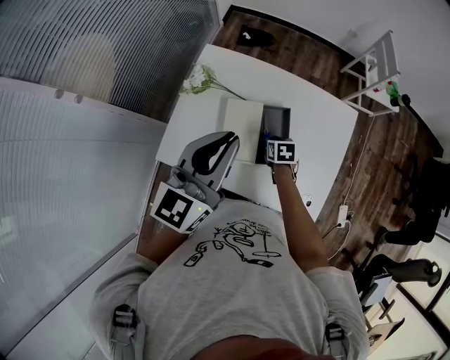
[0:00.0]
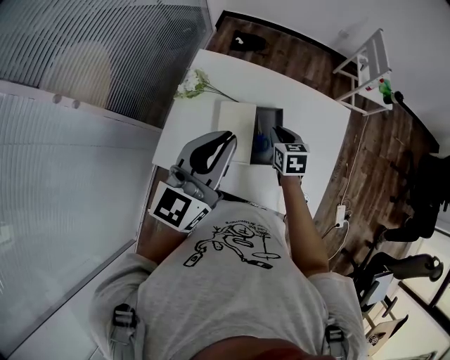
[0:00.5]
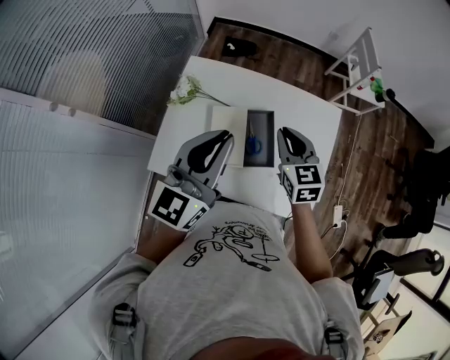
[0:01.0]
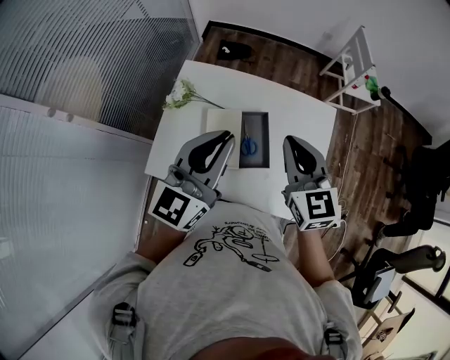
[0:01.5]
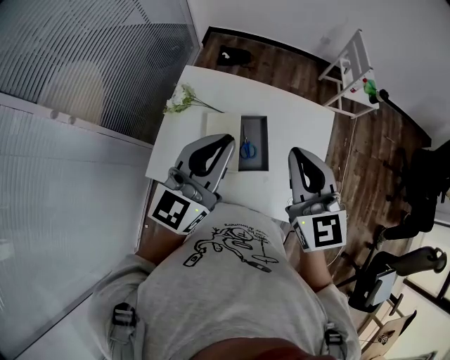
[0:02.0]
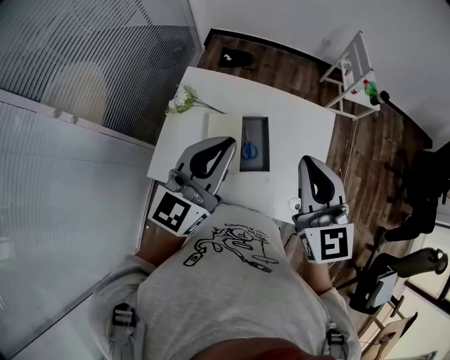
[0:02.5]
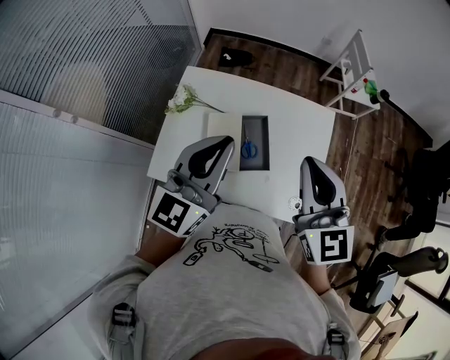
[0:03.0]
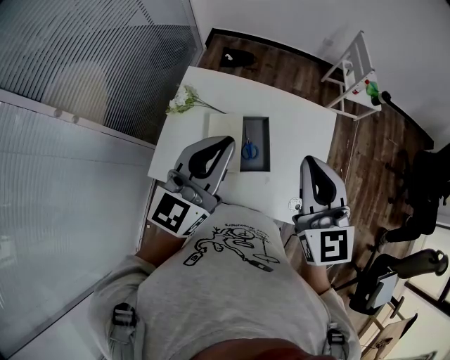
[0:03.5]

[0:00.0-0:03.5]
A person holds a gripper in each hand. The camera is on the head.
0:00.0 to 0:02.0: The left gripper goes some 5 cm to the right, while the right gripper goes approximately 40 cm upward, points its fingers some 50 degrees further upward, and closes its fingers.
0:02.0 to 0:03.5: The grippers move only a little.

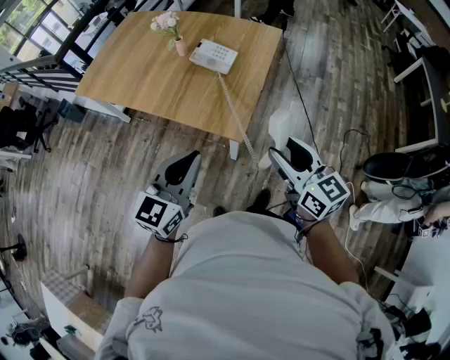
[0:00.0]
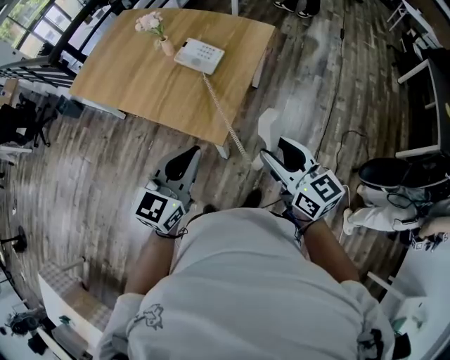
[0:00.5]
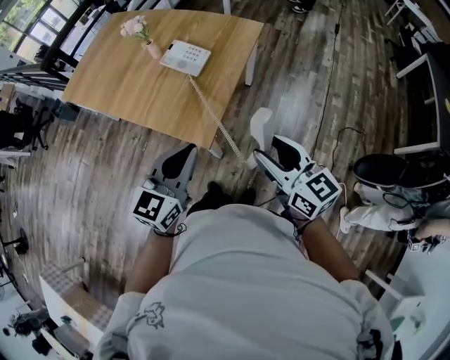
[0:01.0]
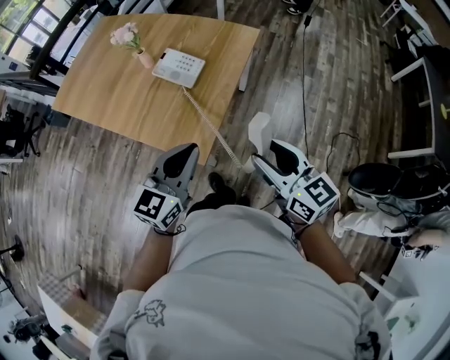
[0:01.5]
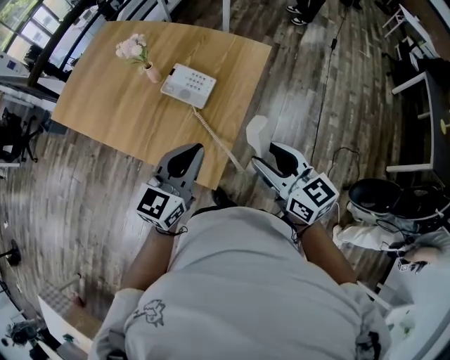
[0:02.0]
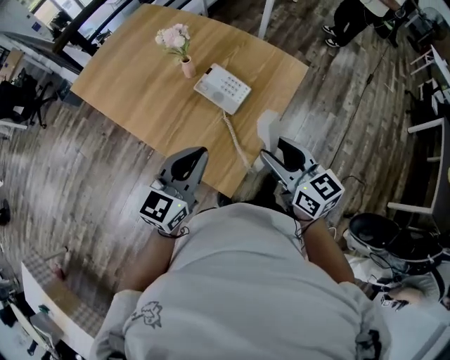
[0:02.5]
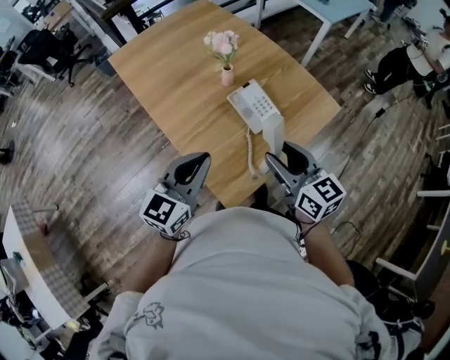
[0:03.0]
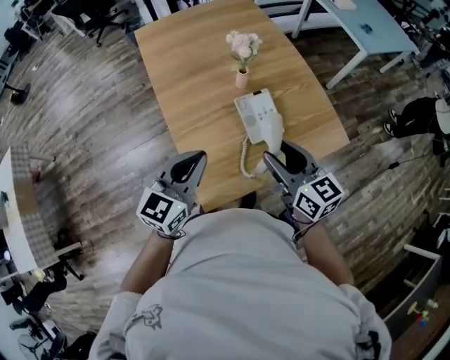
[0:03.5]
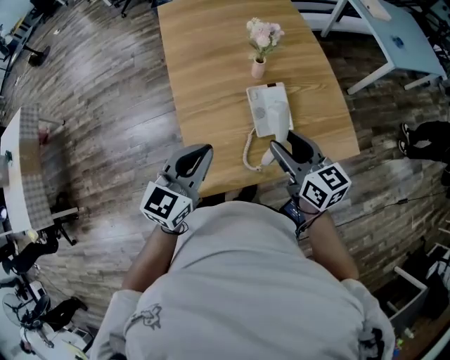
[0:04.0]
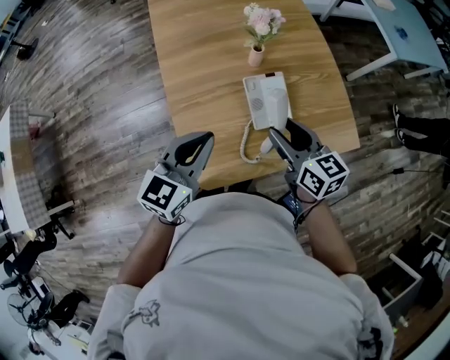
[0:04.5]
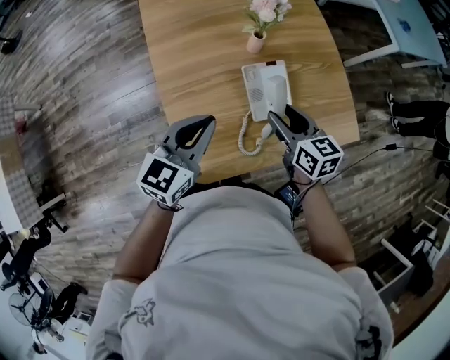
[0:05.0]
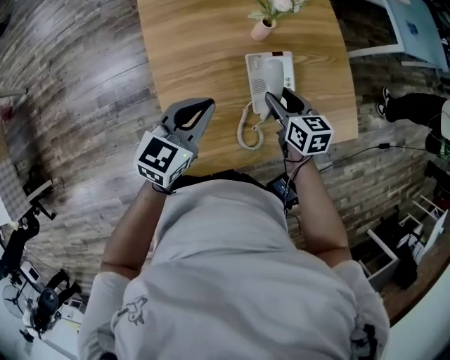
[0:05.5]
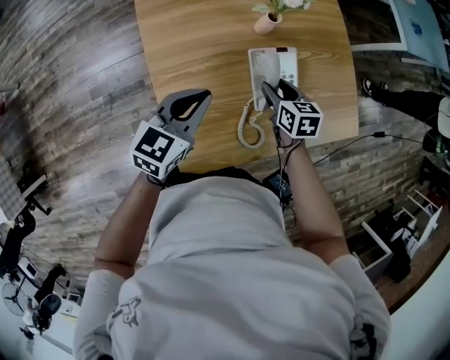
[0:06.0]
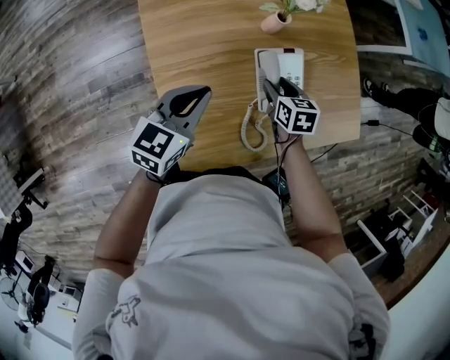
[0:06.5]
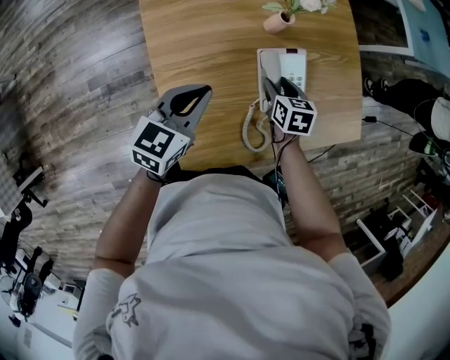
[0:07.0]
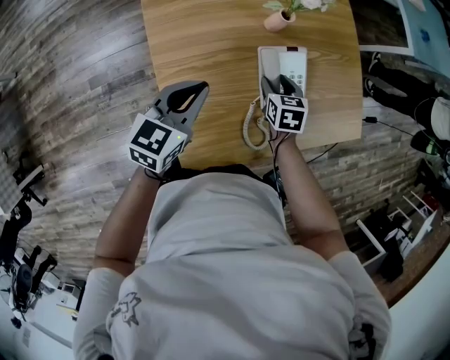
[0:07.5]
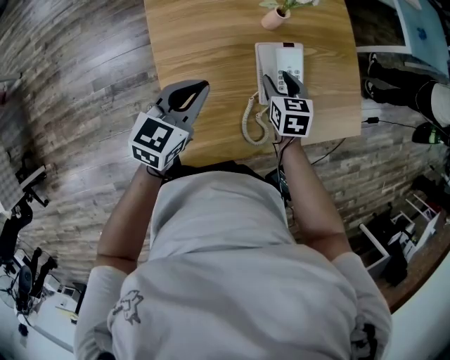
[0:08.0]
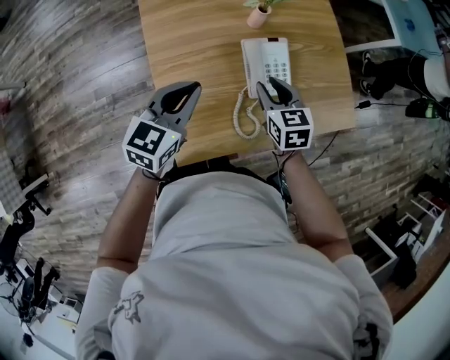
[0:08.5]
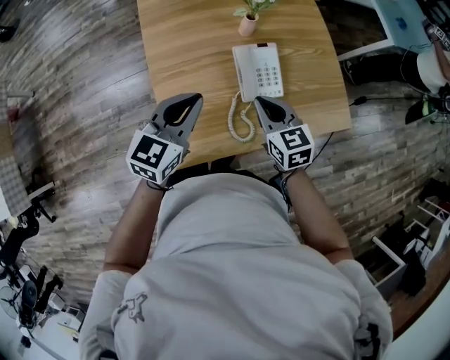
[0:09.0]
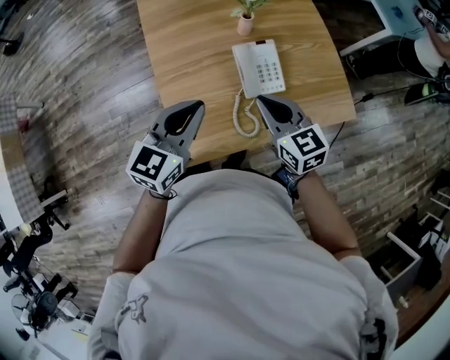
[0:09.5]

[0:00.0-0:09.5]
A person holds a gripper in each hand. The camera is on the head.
0:00.0 to 0:02.0: The left gripper travels forward and to the right by approximately 25 cm, while the right gripper moves forward, about 20 cm.
0:02.0 to 0:04.0: The right gripper moves roughly 25 cm, and swivels some 50 degrees. Meanwhile the left gripper shifts by about 10 cm, and swivels approximately 50 degrees.
0:04.0 to 0:05.5: The right gripper shifts some 20 cm downward and forward, and rotates approximately 20 degrees, while the left gripper is displaced forward and downward by approximately 15 cm.
0:05.5 to 0:07.5: The right gripper moves downward, some 10 cm, and swivels roughly 20 degrees, while the left gripper moves about 5 cm.
0:07.5 to 0:09.5: The left gripper moves upward, backward and to the right, some 20 cm, while the right gripper shifts approximately 25 cm upward and backward, tilts its fingers approximately 30 degrees upward, and closes its fingers.

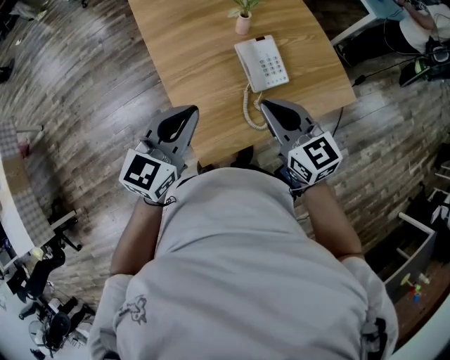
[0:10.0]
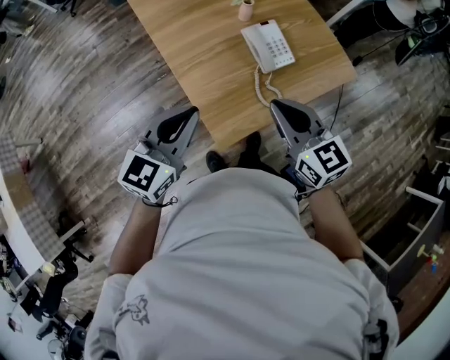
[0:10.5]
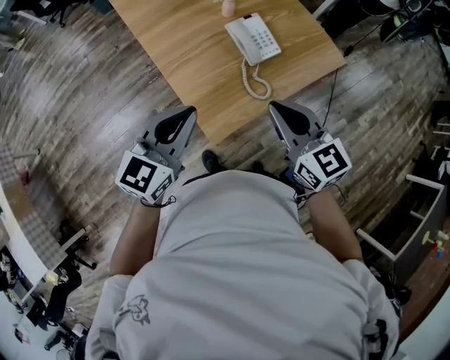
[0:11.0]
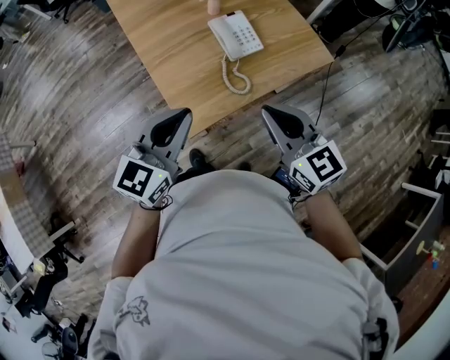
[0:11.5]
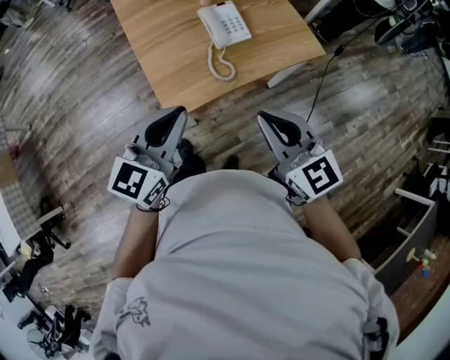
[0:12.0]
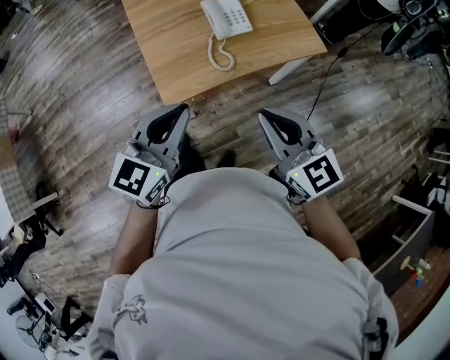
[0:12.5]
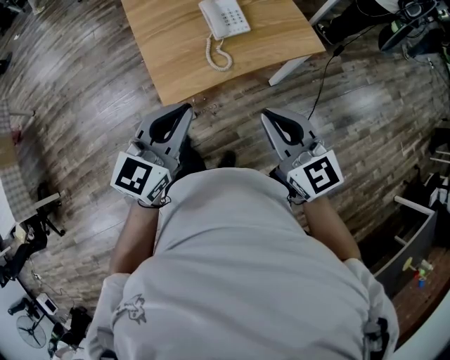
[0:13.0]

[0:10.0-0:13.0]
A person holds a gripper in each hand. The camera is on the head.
0:10.0 to 0:11.5: Both grippers move backward, approximately 15 cm.
0:11.5 to 0:13.0: Both grippers travel together backward and to the right, some 15 cm.

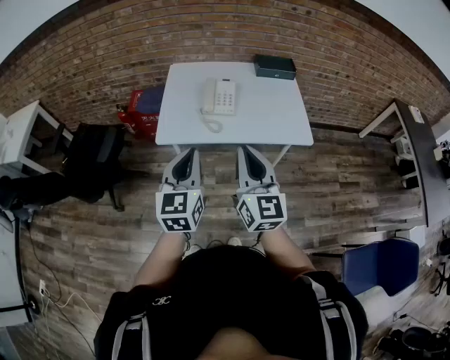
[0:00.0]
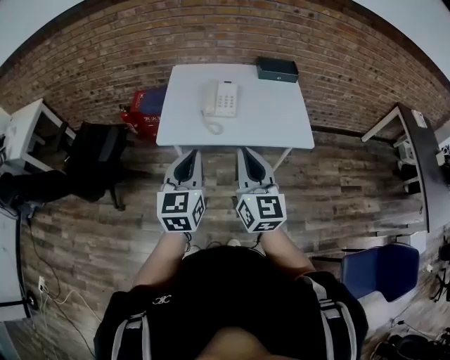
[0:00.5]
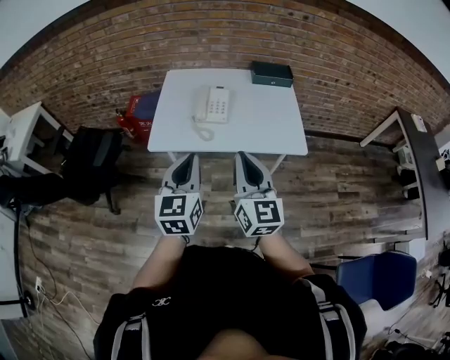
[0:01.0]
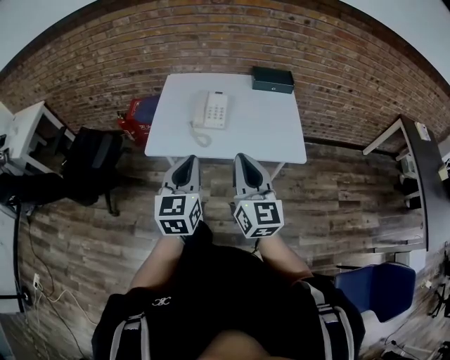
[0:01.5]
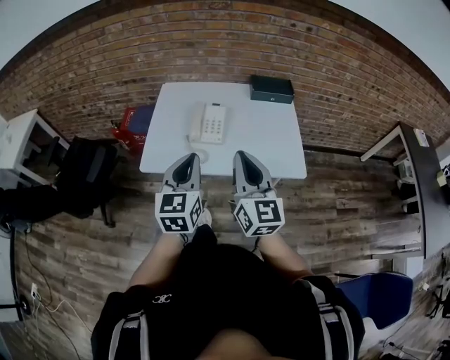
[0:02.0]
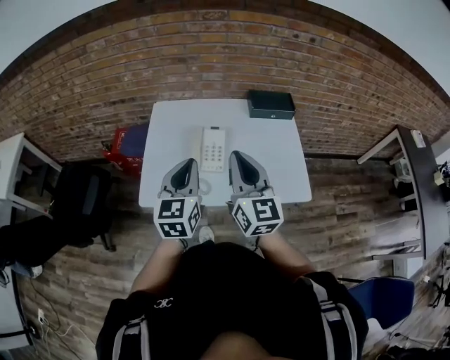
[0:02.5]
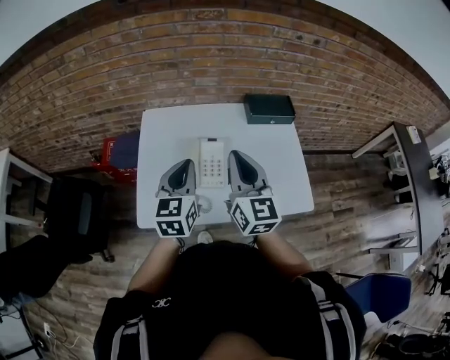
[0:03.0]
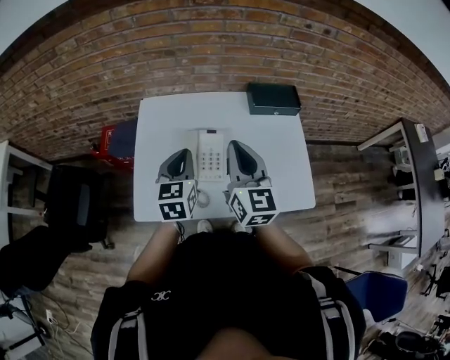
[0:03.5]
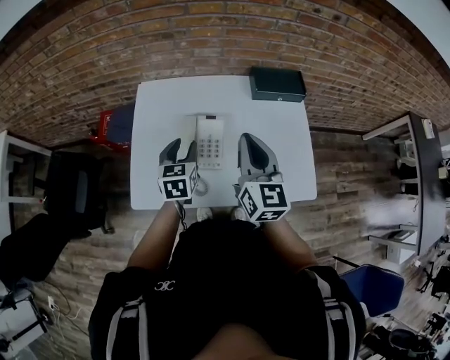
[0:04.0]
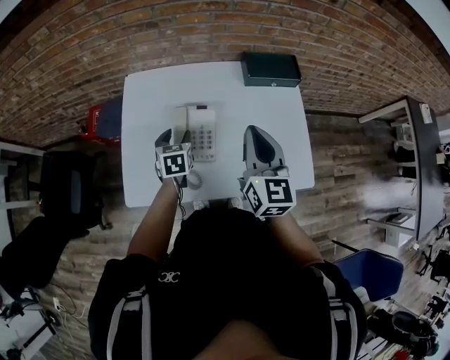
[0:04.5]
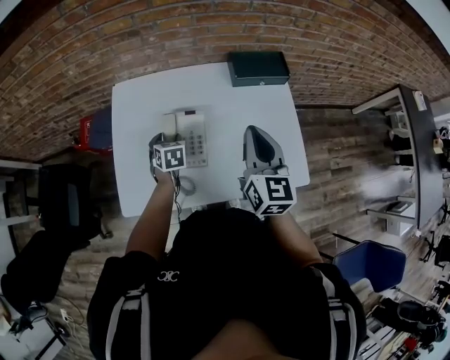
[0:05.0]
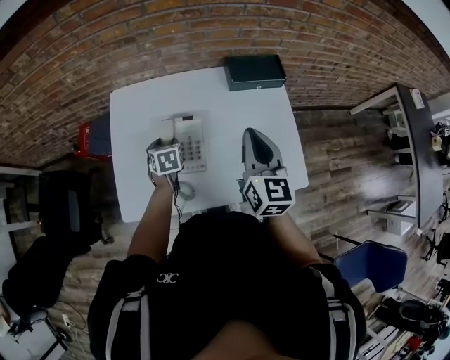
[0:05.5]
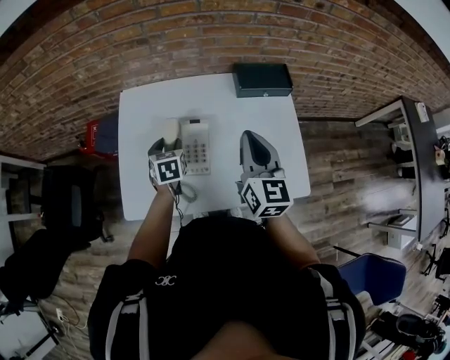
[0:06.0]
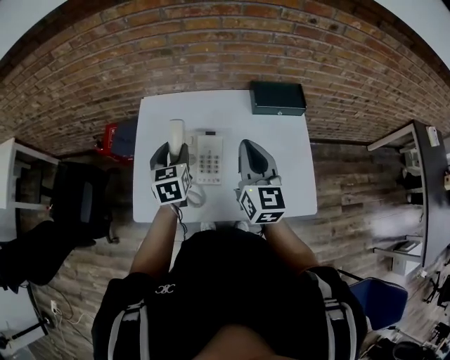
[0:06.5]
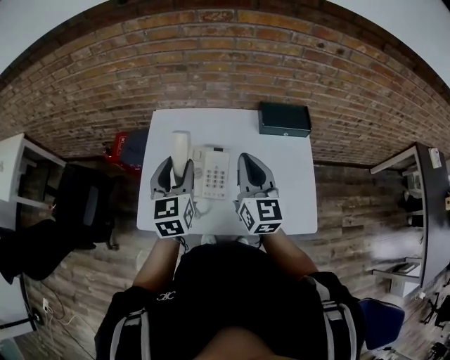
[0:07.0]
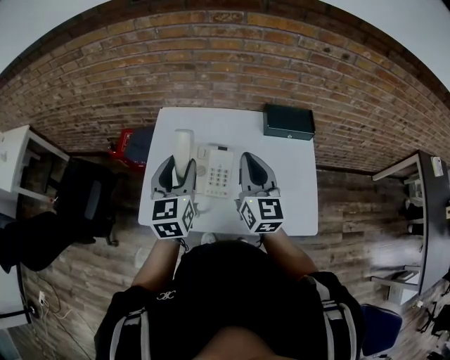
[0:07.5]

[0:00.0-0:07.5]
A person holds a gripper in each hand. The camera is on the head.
0:00.0 to 0:02.0: Both grippers move forward and to the right, roughly 15 cm.
0:02.0 to 0:04.0: The left gripper shifts approximately 35 cm forward and downward, swivels about 20 degrees, and opens; the right gripper shifts approximately 30 cm forward.
0:04.0 to 0:05.5: The left gripper travels downward and forward by some 15 cm, and rotates approximately 20 degrees. Meanwhile the right gripper moves to the right, some 5 cm.
0:05.5 to 0:07.5: The right gripper shifts about 10 cm to the left, while the left gripper shifts approximately 25 cm upward, and tilts its fingers approximately 40 degrees upward.

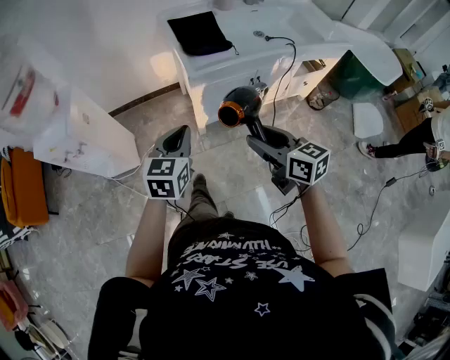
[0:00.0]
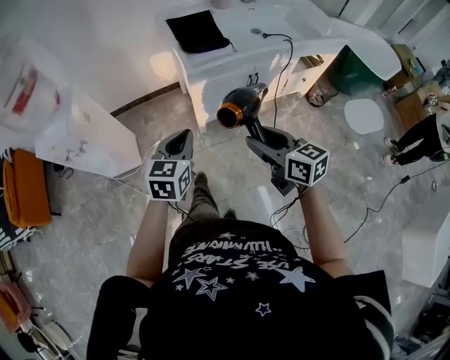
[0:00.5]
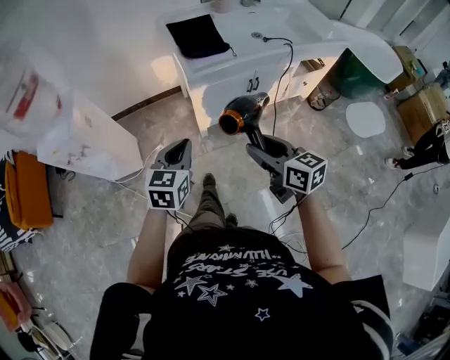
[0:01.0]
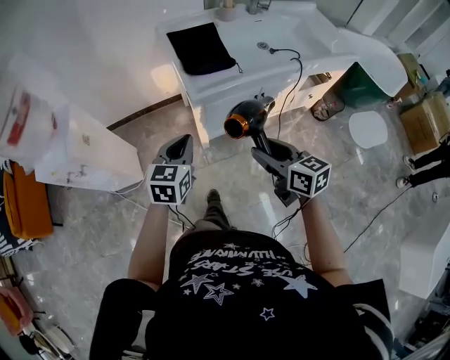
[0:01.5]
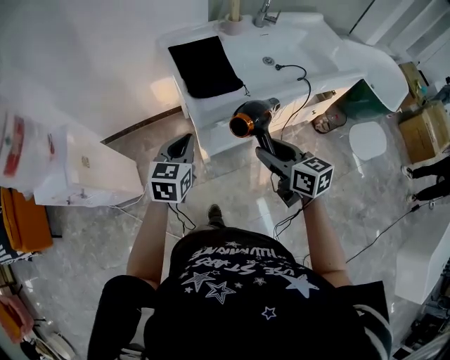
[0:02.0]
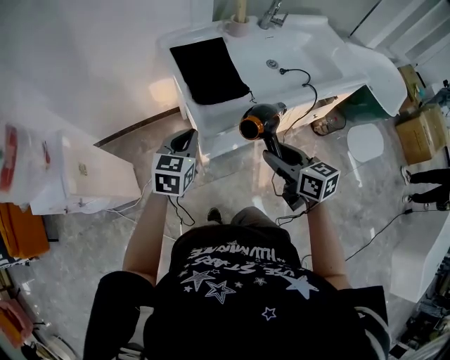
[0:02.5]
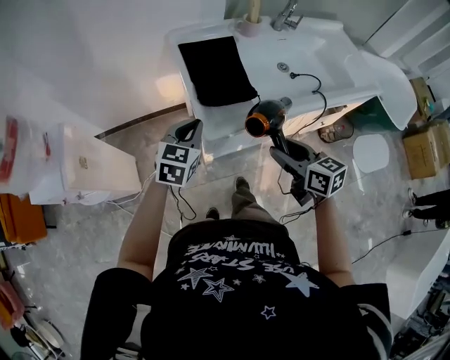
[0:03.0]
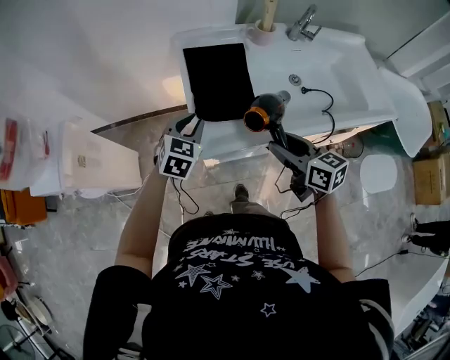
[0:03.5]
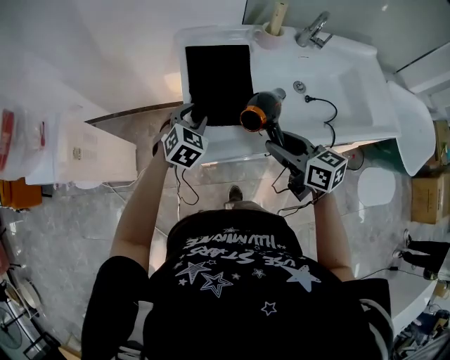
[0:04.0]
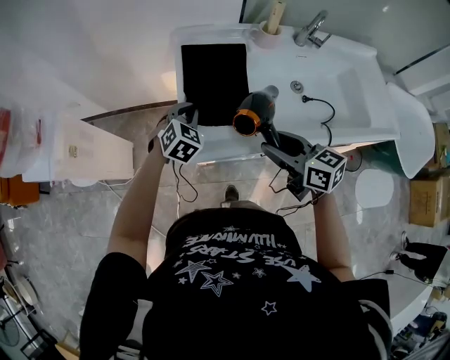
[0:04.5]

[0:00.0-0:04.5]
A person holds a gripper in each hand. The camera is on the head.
0:00.0 to 0:02.0: Both grippers travel together forward, approximately 20 cm.
0:02.0 to 0:04.5: The left gripper is displaced forward and downward by about 25 cm, swivels some 30 degrees, and opens and closes again. Meanwhile the right gripper goes approximately 20 cm forward and to the right, and turns by about 20 degrees.
